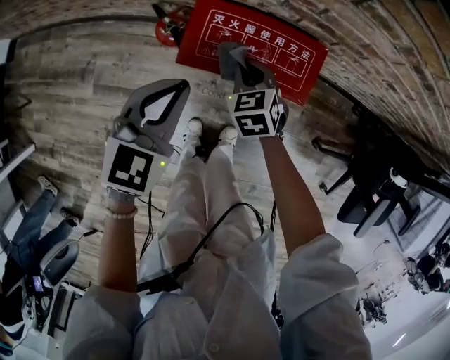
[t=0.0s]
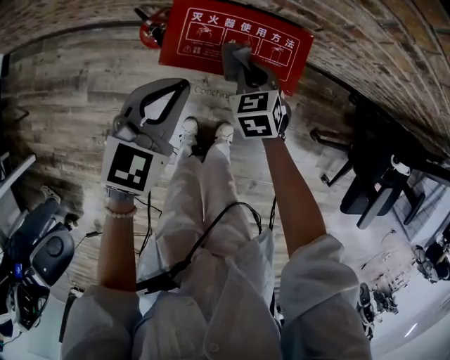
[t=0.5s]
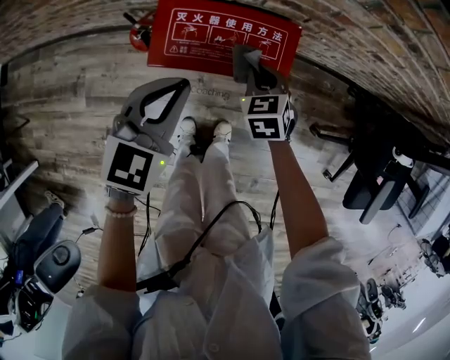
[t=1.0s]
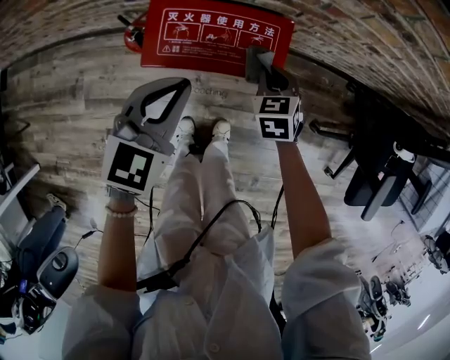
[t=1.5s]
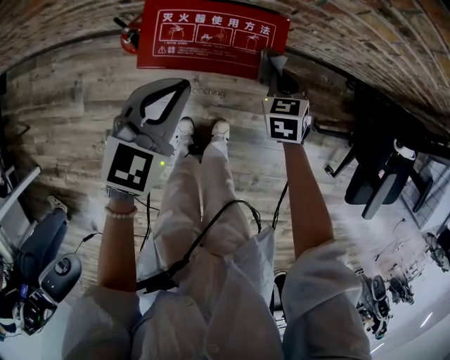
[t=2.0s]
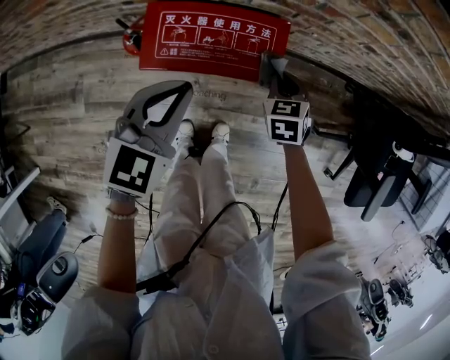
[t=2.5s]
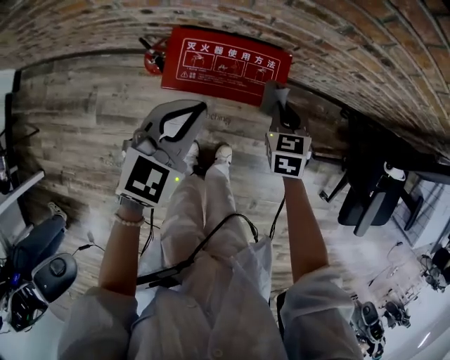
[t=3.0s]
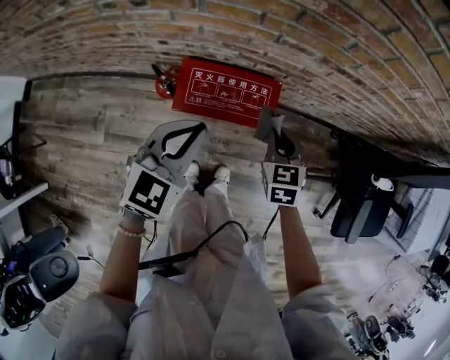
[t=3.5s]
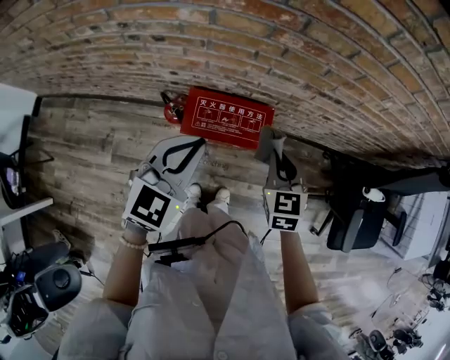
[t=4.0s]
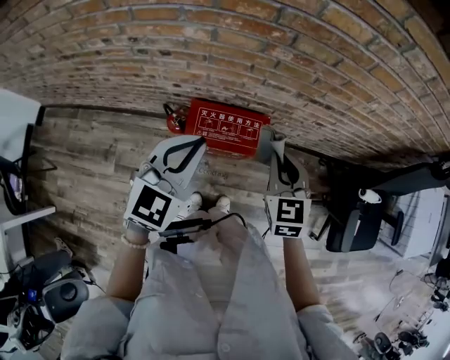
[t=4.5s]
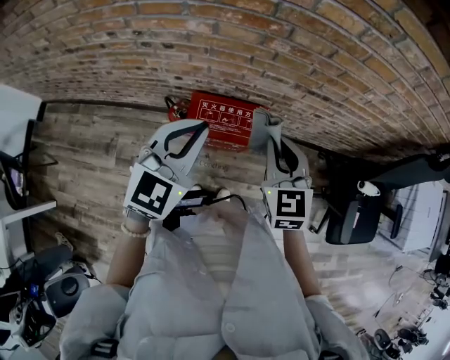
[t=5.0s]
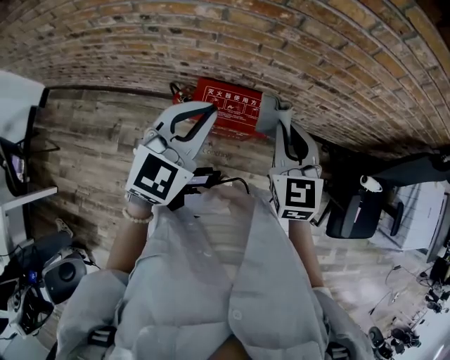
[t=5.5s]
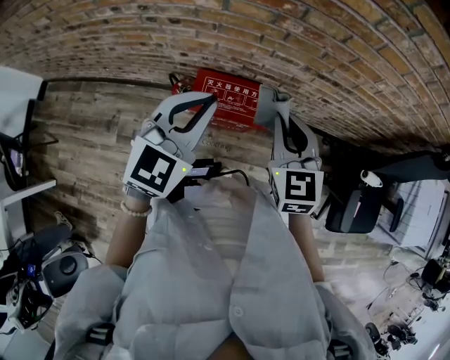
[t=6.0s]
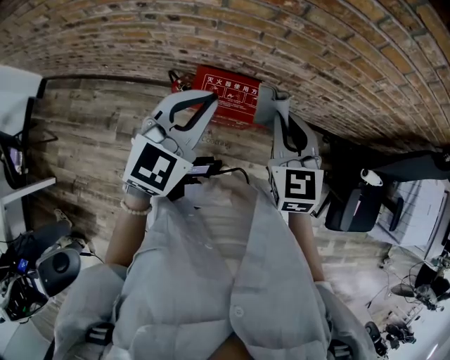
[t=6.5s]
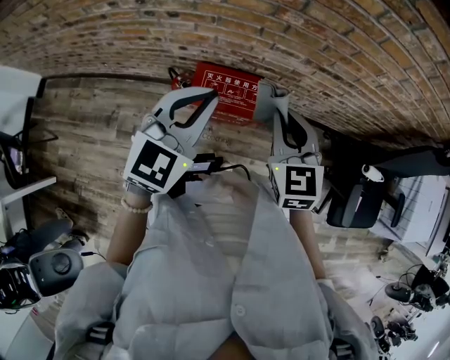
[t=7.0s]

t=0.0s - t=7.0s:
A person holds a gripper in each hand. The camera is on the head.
t=0.0s - t=2.0s: The right gripper moves to the right, some 20 cm. The left gripper moves to the right, approximately 10 cm.
t=2.0s - t=3.5s: The two grippers go approximately 15 cm upward.
t=3.5s - t=5.0s: Both grippers travel together upward, approximately 20 cm. The right gripper swivels some 20 degrees.
t=5.0s - t=7.0s: The grippers make only small movements.

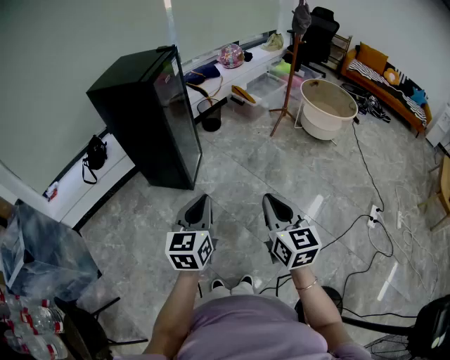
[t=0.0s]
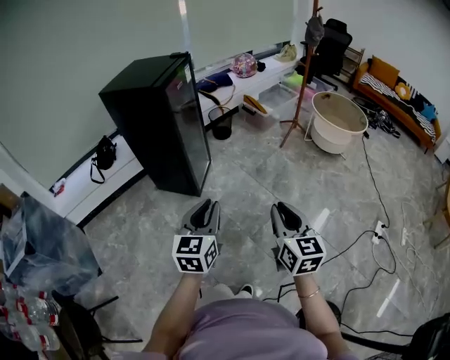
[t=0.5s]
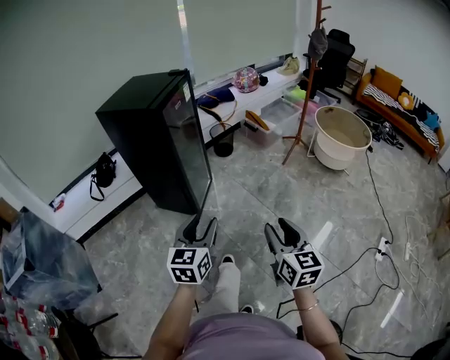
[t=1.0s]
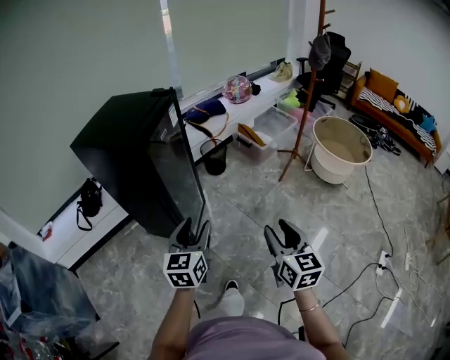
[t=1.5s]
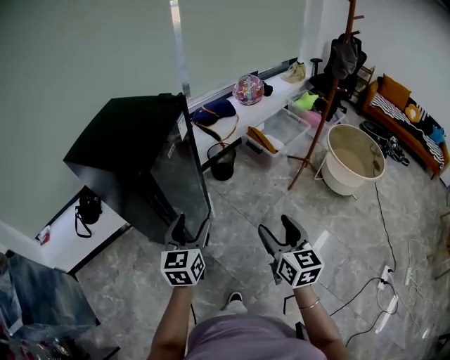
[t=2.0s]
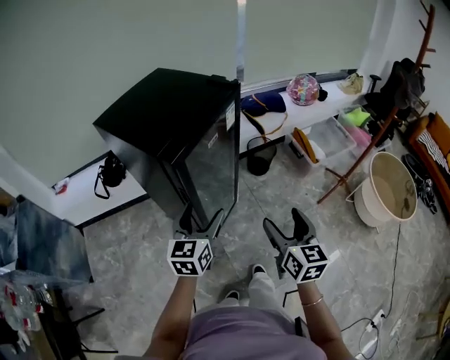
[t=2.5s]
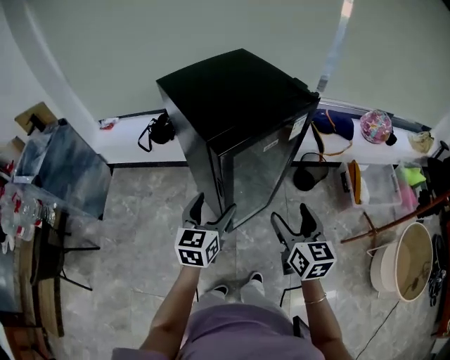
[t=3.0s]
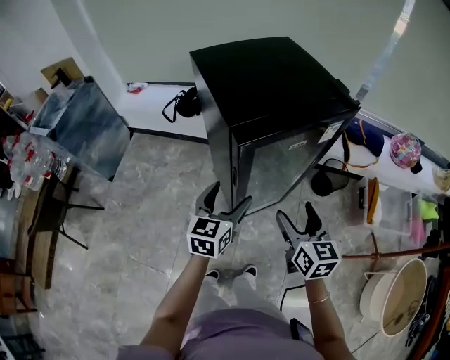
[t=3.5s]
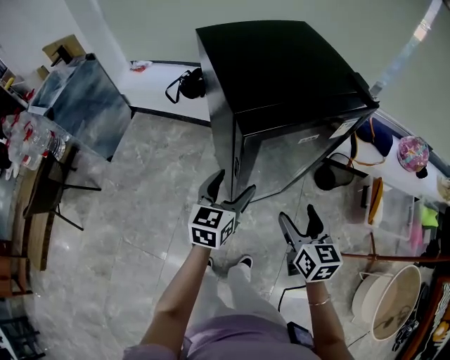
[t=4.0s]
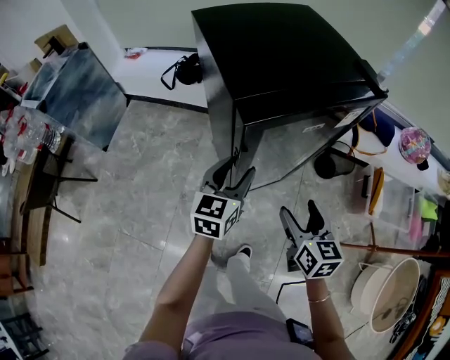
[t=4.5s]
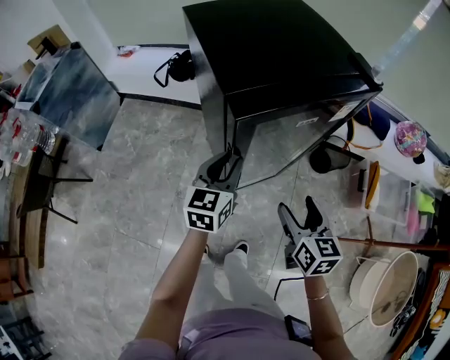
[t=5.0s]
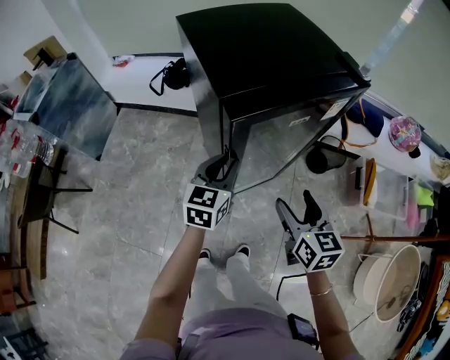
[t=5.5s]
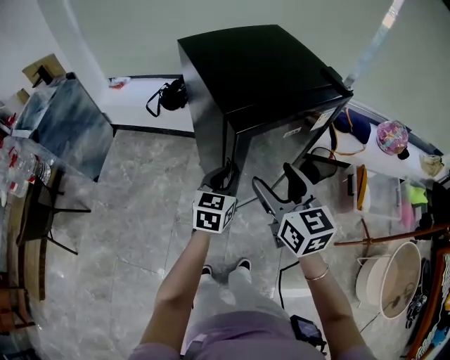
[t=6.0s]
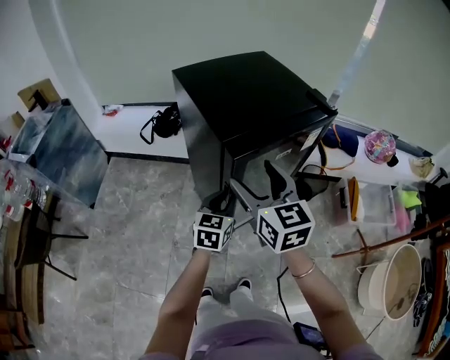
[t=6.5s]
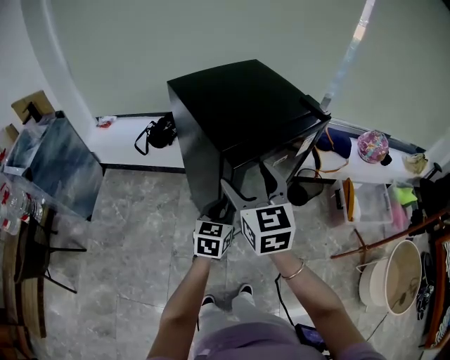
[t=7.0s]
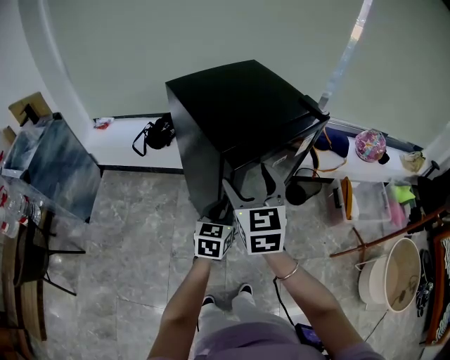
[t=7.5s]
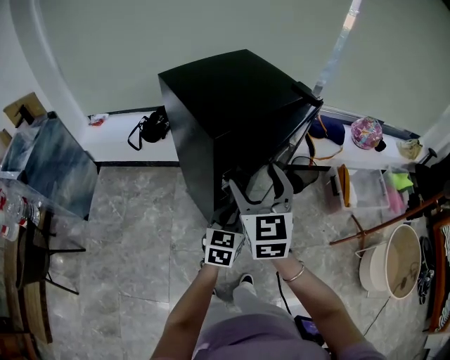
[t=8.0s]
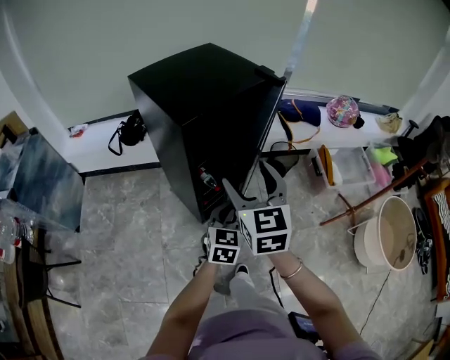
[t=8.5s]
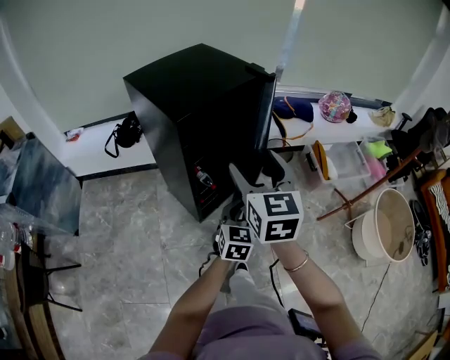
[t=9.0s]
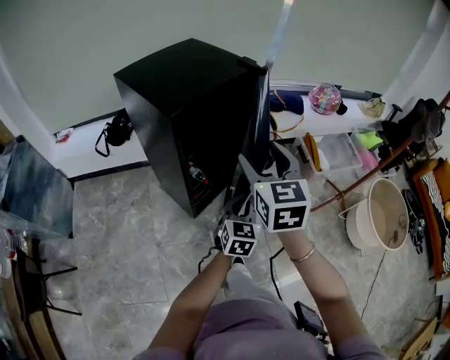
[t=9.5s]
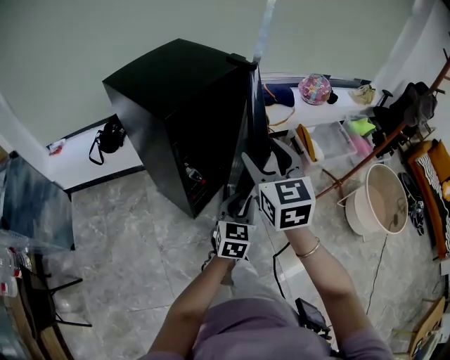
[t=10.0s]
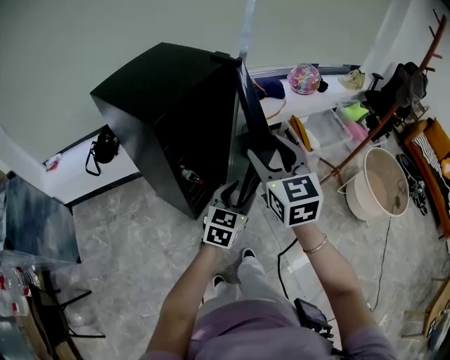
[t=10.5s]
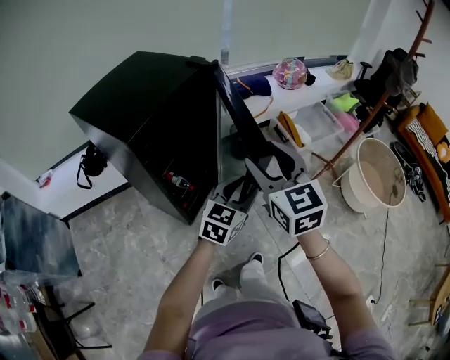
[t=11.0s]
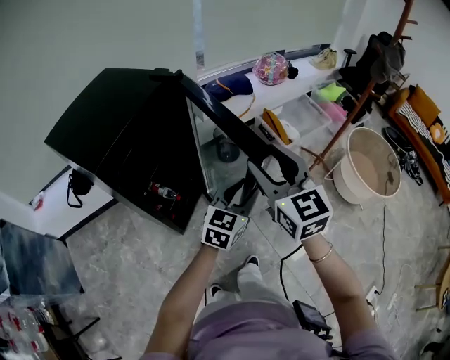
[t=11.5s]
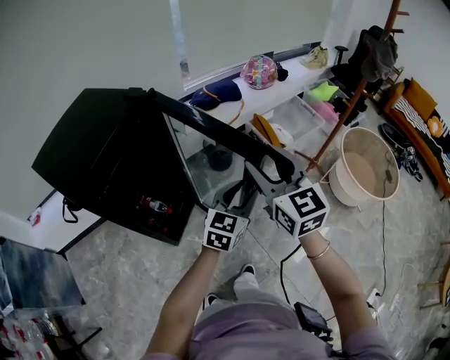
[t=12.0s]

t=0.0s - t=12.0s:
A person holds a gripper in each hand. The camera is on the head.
t=0.0s - t=2.0s: The two grippers travel together, forward, some 40 cm. The right gripper opens its fingers; the left gripper opens.
t=2.0s - t=4.0s: The left gripper moves about 15 cm, and rotates roughly 40 degrees; the right gripper moves about 30 cm, and rotates about 50 degrees.
t=4.0s - t=6.0s: The left gripper closes. The right gripper heads upward and to the left, covering some 15 cm.
t=6.0s - t=8.0s: The left gripper is displaced backward by approximately 5 cm; the right gripper swivels some 30 degrees.
t=8.0s - t=10.0s: The left gripper shifts roughly 15 cm to the right and backward. Meanwhile the right gripper shifts approximately 10 cm to the right.
t=10.0s - t=12.0s: The two grippers go approximately 25 cm to the right and forward. The left gripper swivels approximately 30 degrees.

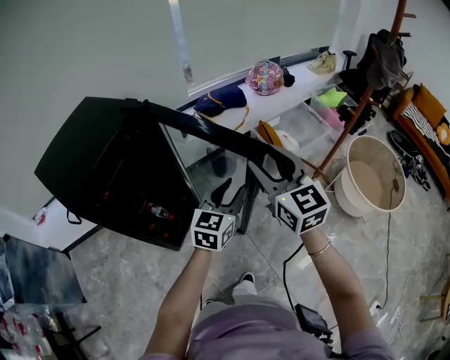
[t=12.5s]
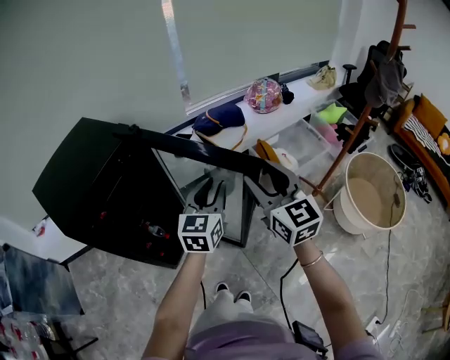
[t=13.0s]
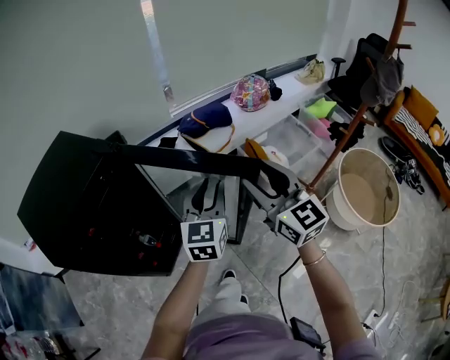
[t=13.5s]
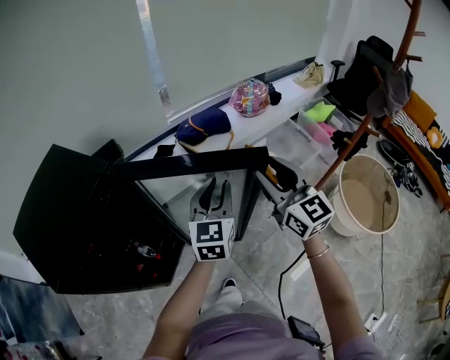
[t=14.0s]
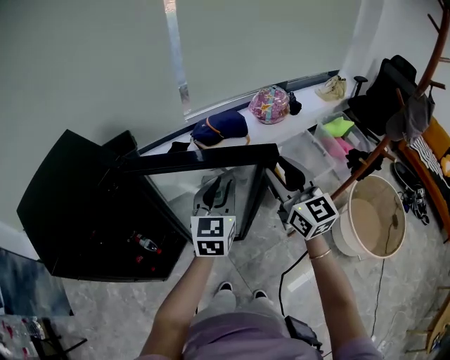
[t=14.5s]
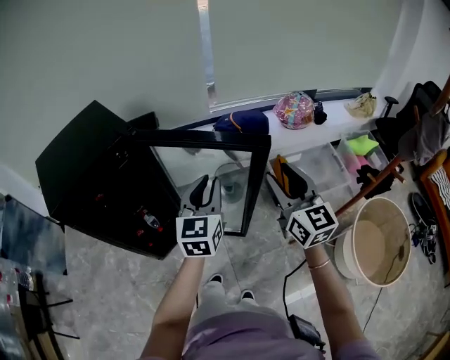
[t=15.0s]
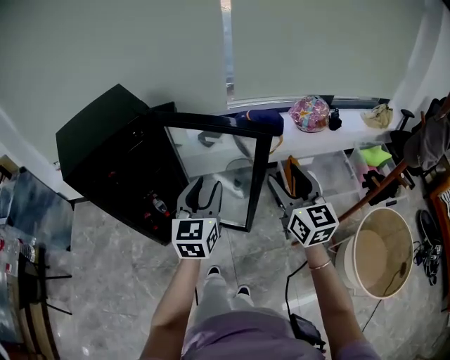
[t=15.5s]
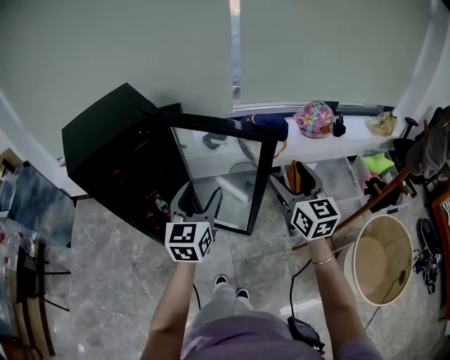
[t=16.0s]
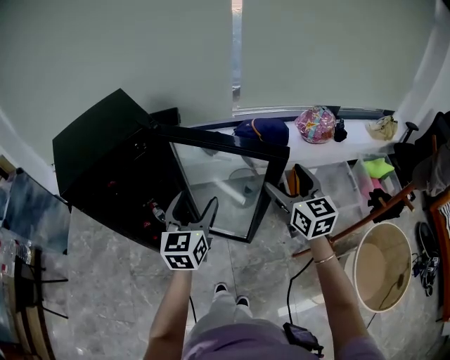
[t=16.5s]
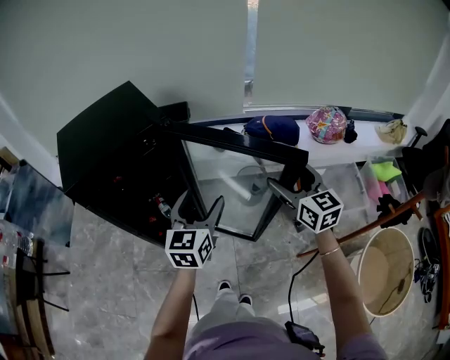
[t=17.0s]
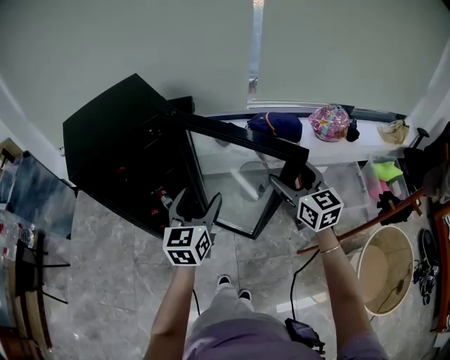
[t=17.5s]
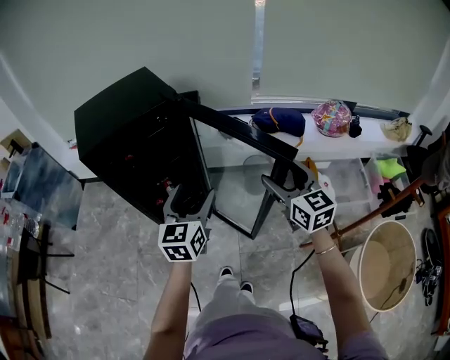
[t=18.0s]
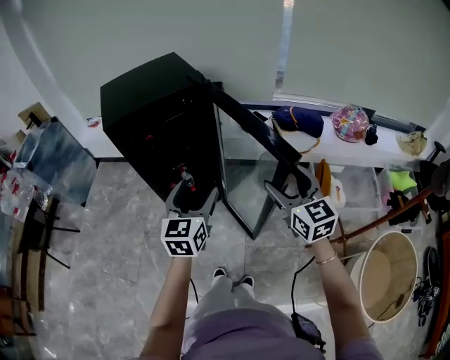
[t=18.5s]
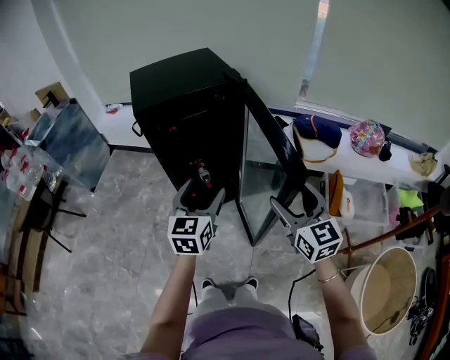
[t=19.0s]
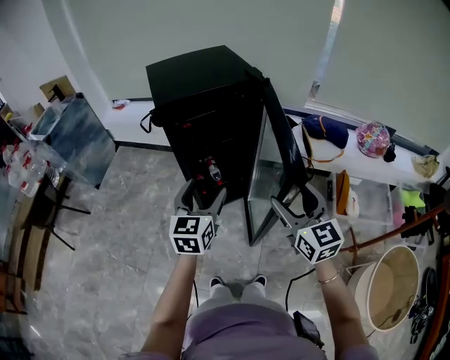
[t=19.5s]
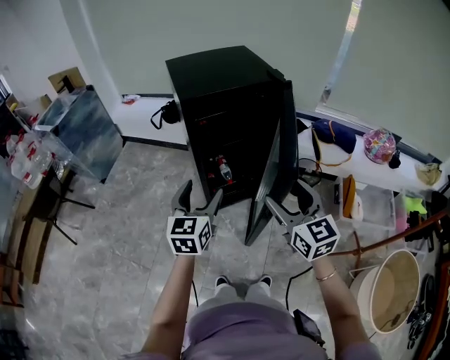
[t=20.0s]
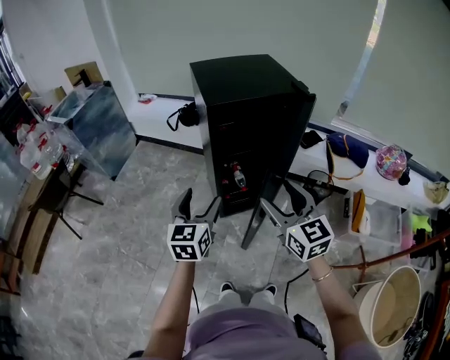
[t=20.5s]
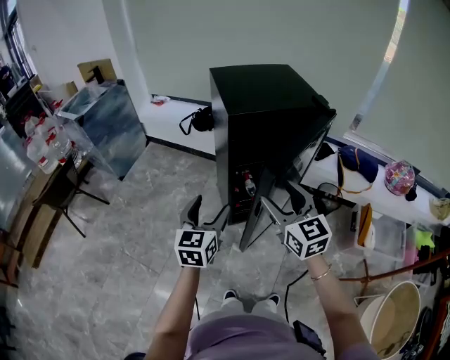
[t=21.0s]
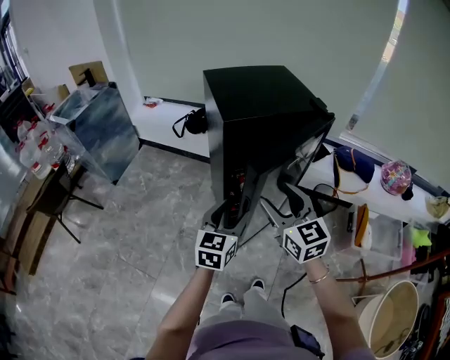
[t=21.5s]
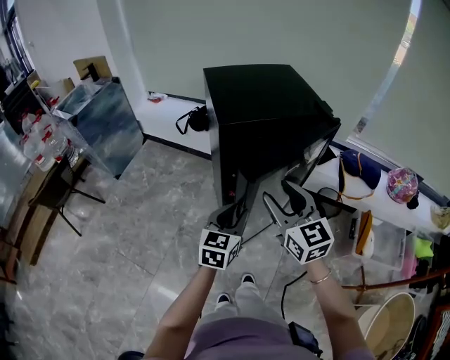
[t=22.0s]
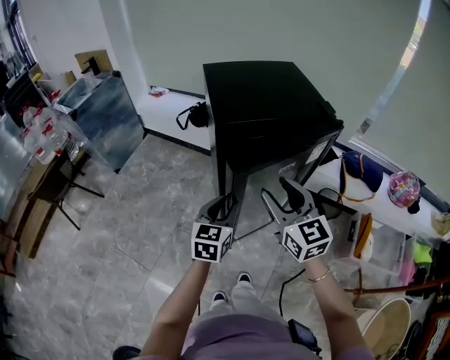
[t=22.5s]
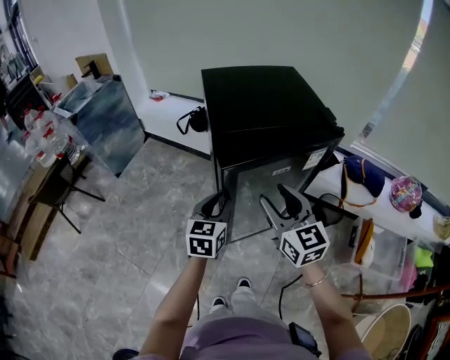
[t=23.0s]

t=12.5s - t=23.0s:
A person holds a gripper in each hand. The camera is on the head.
t=12.5s - t=14.5s: The right gripper shifts approximately 20 cm forward and to the right. The left gripper heads forward, covering some 20 cm.
t=14.5s - t=16.5s: The right gripper travels backward and back again, about 10 cm each way, and opens up; the left gripper is displaced to the left and backward by approximately 15 cm, changes its angle by approximately 30 degrees, and opens.
t=16.5s - t=19.0s: The two grippers go approximately 20 cm to the left and backward. The right gripper changes its angle by about 20 degrees.
t=19.0s - t=21.0s: The grippers both shift to the left by approximately 25 cm.
t=21.0s - t=23.0s: The left gripper travels forward and to the right by some 15 cm, and closes. Meanwhile the right gripper goes some 10 cm forward.
